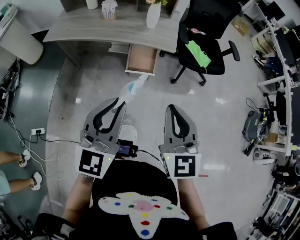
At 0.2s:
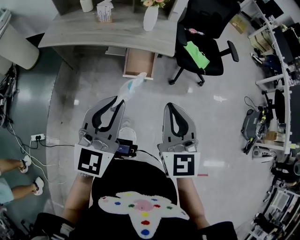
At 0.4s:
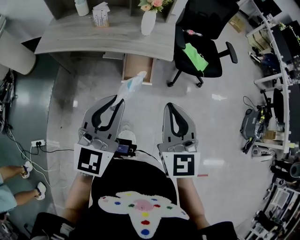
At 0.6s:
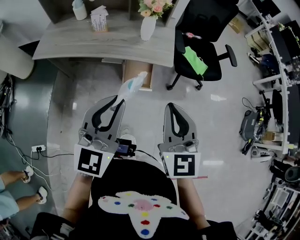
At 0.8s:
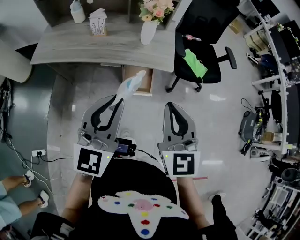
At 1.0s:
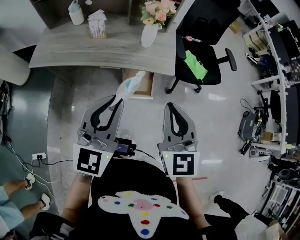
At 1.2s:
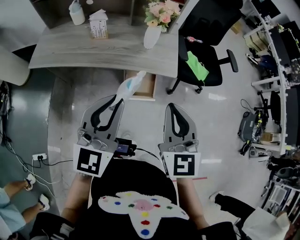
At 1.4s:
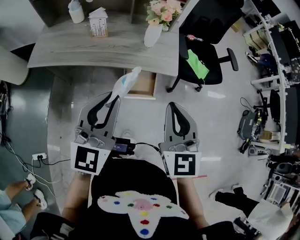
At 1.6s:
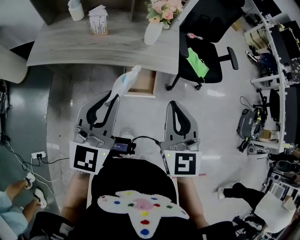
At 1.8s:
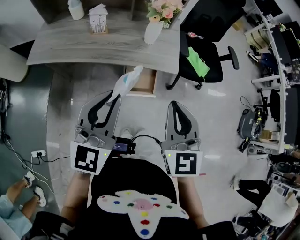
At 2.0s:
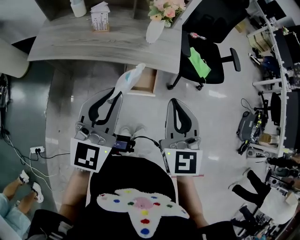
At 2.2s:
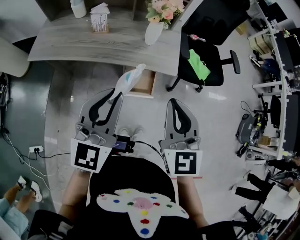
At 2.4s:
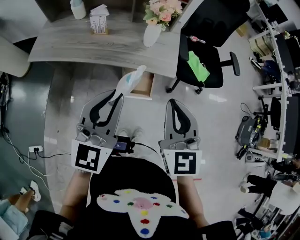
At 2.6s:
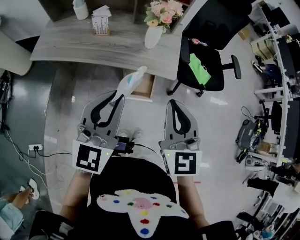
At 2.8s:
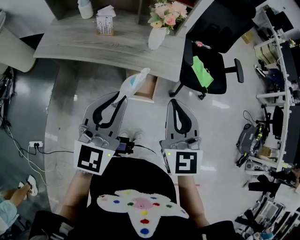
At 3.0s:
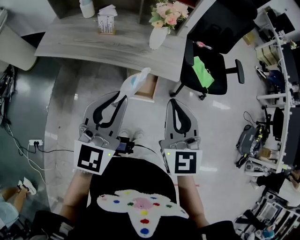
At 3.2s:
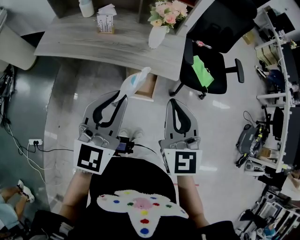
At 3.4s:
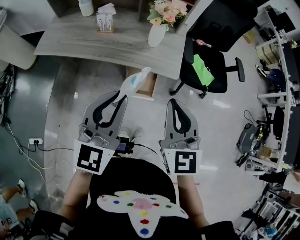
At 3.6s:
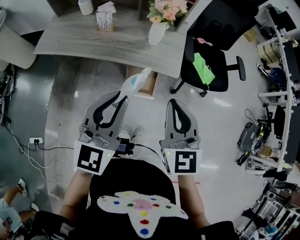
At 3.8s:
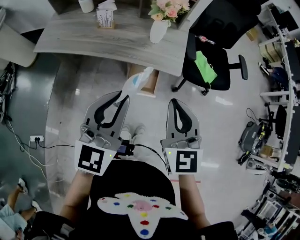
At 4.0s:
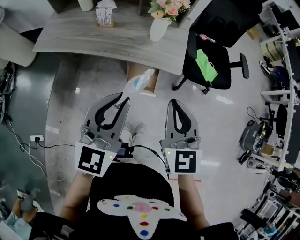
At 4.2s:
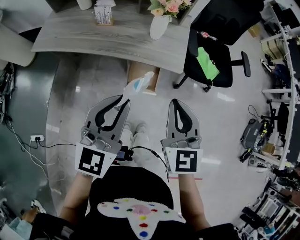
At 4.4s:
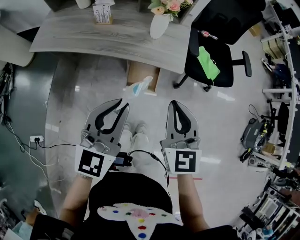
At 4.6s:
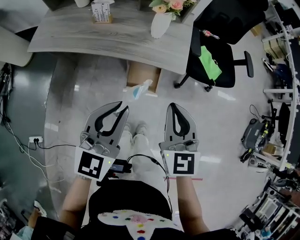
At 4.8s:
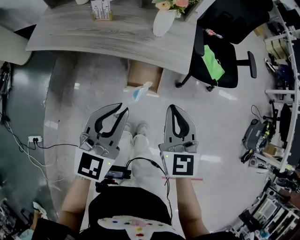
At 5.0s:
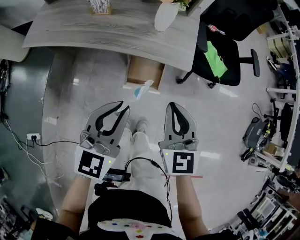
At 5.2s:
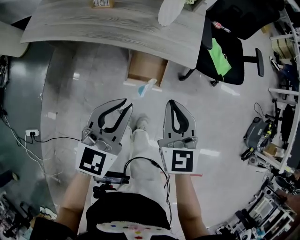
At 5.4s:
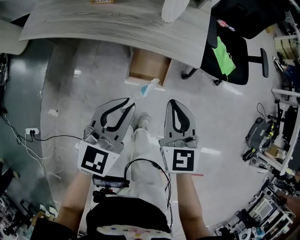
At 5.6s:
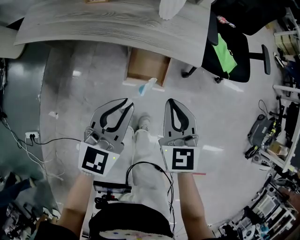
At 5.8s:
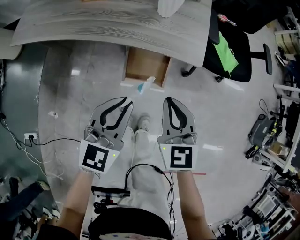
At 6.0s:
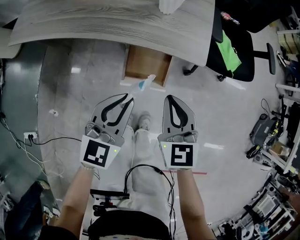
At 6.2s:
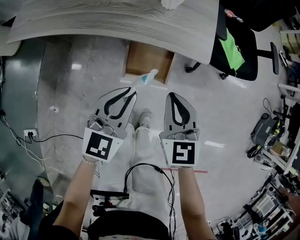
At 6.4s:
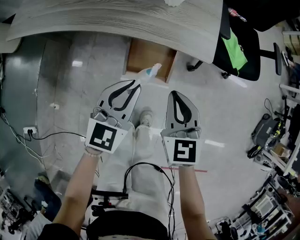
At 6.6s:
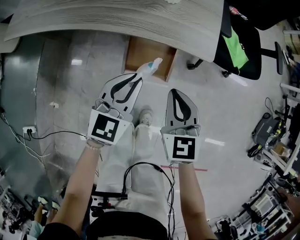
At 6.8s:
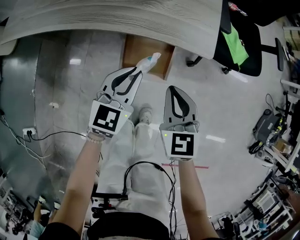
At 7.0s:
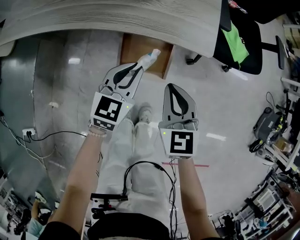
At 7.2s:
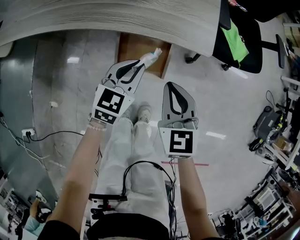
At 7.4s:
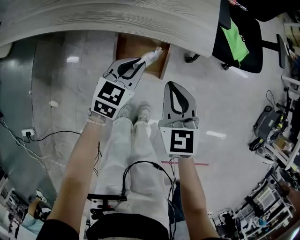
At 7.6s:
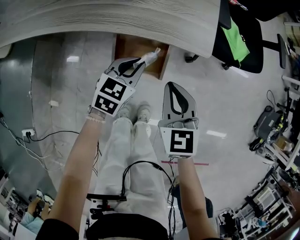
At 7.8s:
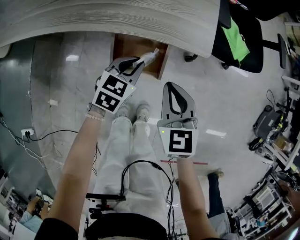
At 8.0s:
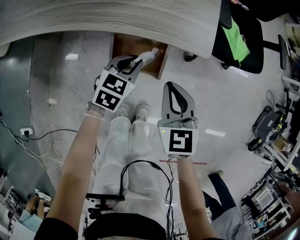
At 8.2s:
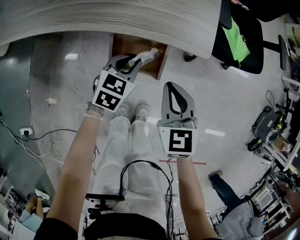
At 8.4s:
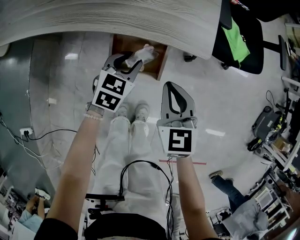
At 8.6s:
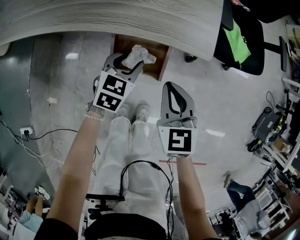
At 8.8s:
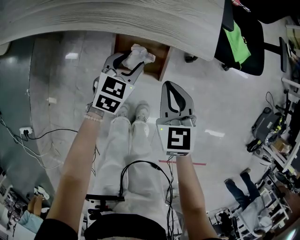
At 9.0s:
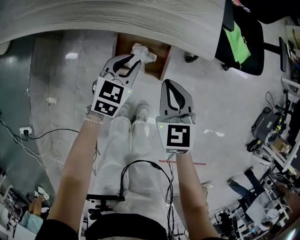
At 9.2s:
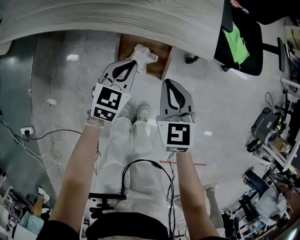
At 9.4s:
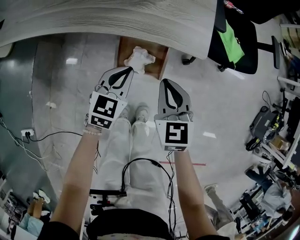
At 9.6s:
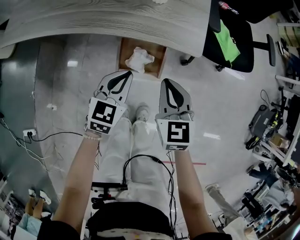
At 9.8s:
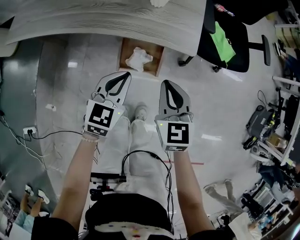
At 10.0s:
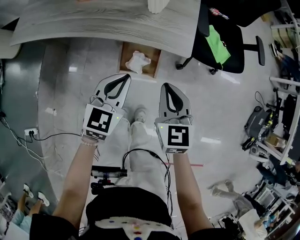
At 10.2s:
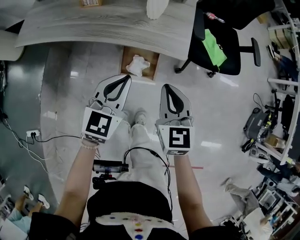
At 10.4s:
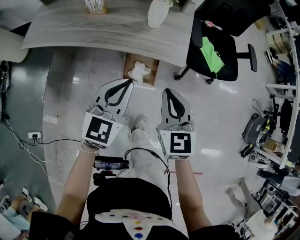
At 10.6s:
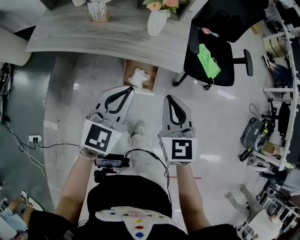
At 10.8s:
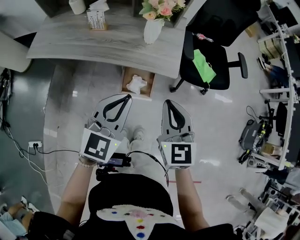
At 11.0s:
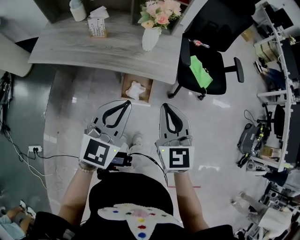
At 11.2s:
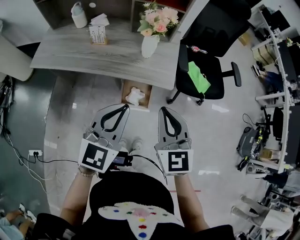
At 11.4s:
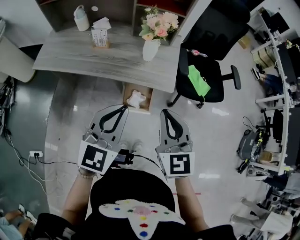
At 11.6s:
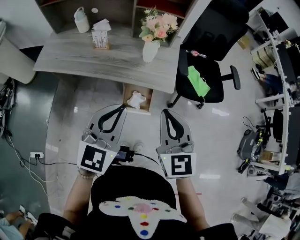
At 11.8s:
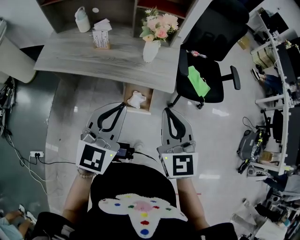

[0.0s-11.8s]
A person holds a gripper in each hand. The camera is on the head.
0.0s to 1.4s: Both grippers travel together forward and to the left, some 20 cm.
1.4s to 3.0s: The grippers move only a little.
3.0s to 4.4s: The grippers both shift downward by some 5 cm.
4.4s to 6.0s: Both grippers travel together downward, approximately 20 cm.
6.0s to 7.4s: The right gripper travels downward by approximately 10 cm; the left gripper moves downward and forward, about 20 cm.
7.4s to 8.8s: The left gripper opens.
8.8s to 10.4s: The two grippers go roughly 25 cm upward. The left gripper changes its angle by some 20 degrees, and closes up.
10.4s to 11.8s: Both grippers travel together upward, roughly 15 cm.

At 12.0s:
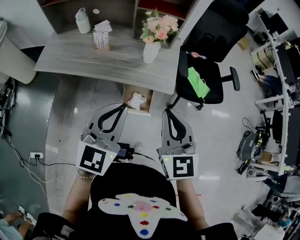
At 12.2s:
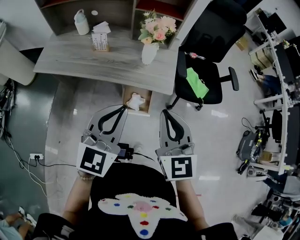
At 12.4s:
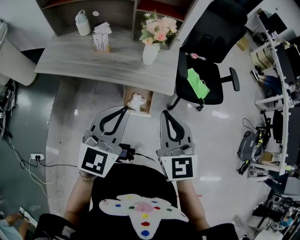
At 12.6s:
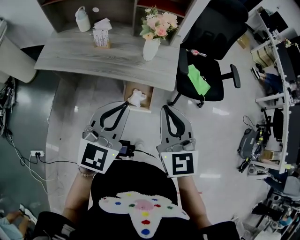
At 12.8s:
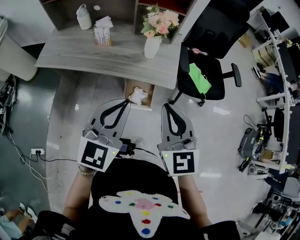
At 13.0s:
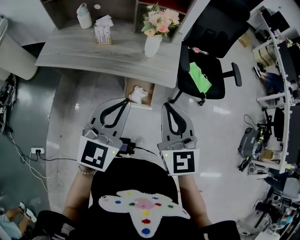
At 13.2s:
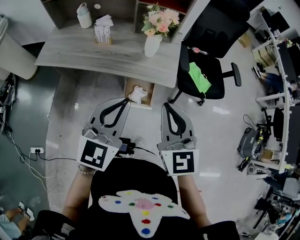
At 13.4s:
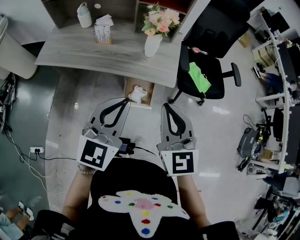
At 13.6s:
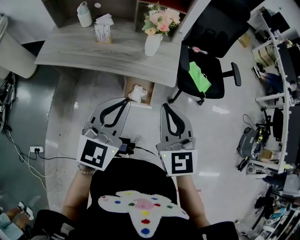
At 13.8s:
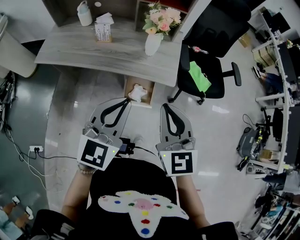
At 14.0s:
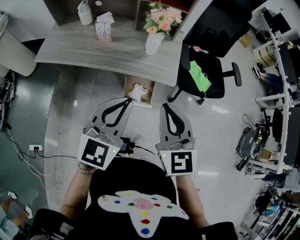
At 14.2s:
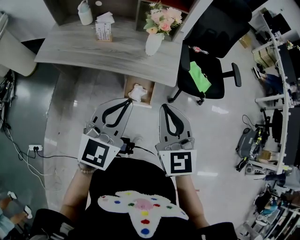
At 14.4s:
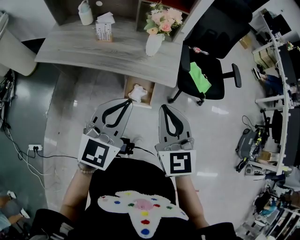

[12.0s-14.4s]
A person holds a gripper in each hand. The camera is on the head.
12.0s to 13.2s: Both grippers stay about where they are.
13.2s to 14.4s: The grippers make only small movements.

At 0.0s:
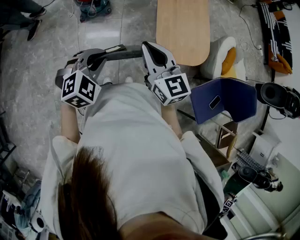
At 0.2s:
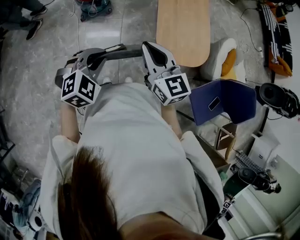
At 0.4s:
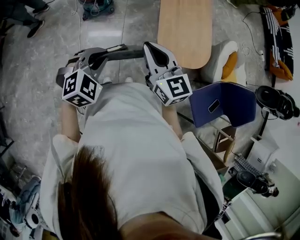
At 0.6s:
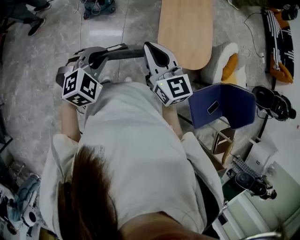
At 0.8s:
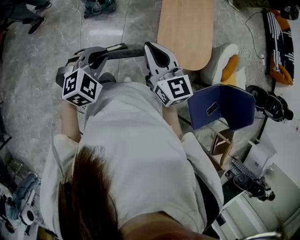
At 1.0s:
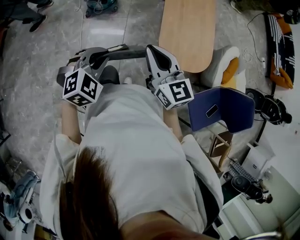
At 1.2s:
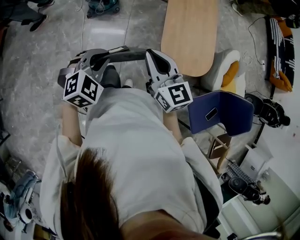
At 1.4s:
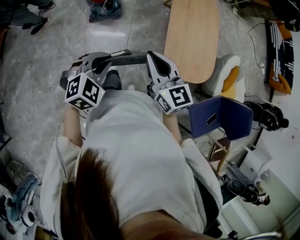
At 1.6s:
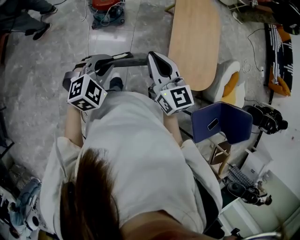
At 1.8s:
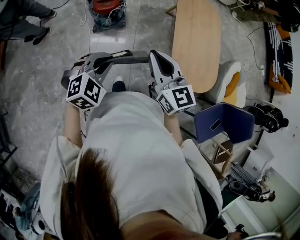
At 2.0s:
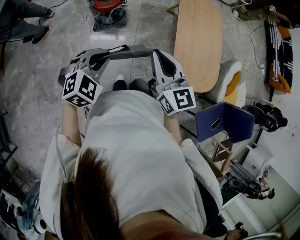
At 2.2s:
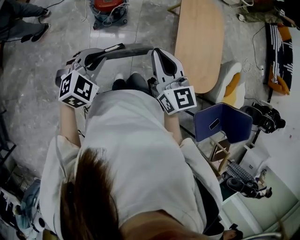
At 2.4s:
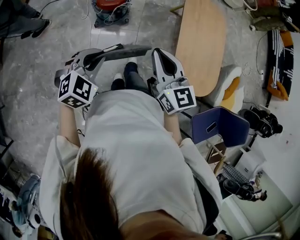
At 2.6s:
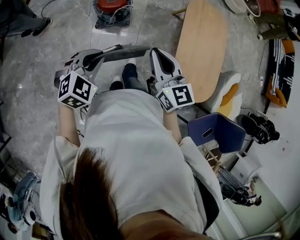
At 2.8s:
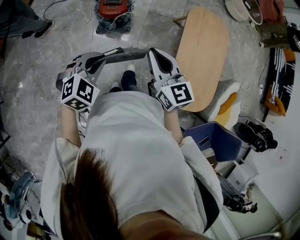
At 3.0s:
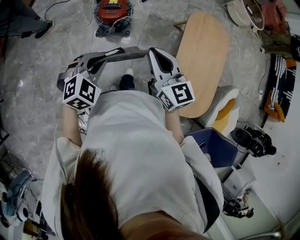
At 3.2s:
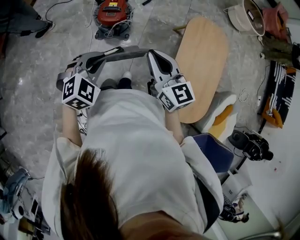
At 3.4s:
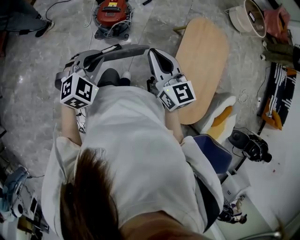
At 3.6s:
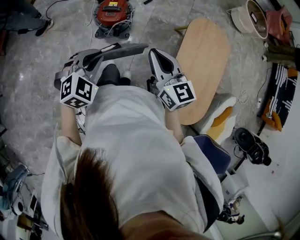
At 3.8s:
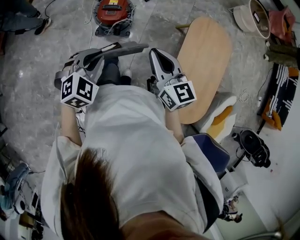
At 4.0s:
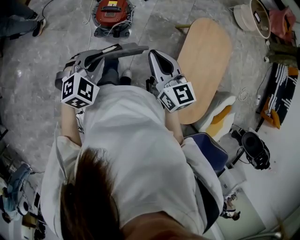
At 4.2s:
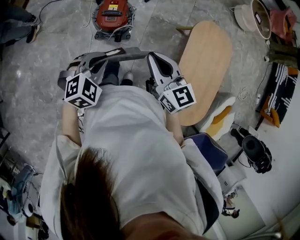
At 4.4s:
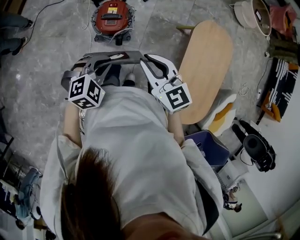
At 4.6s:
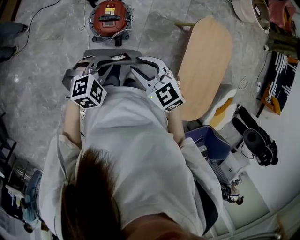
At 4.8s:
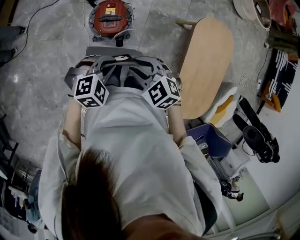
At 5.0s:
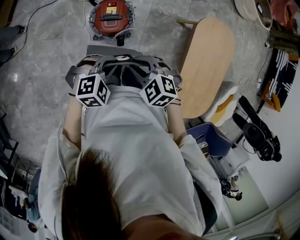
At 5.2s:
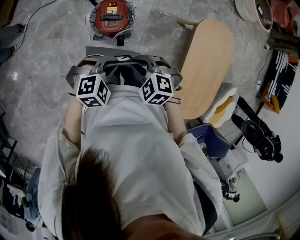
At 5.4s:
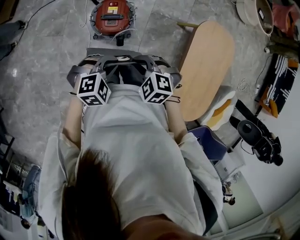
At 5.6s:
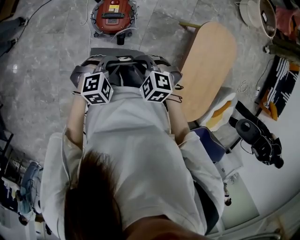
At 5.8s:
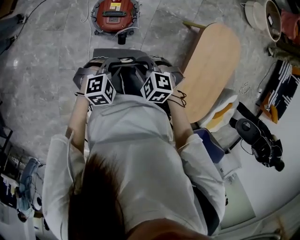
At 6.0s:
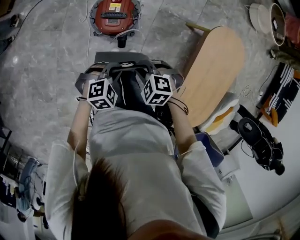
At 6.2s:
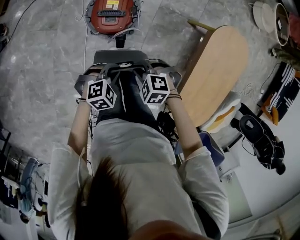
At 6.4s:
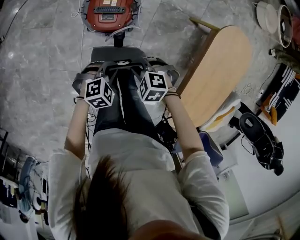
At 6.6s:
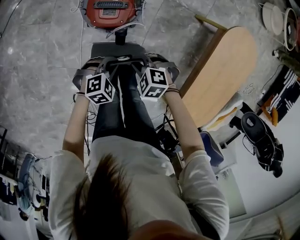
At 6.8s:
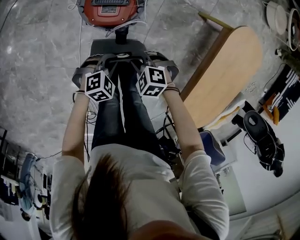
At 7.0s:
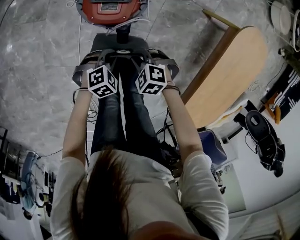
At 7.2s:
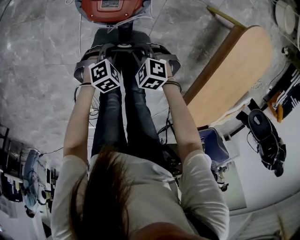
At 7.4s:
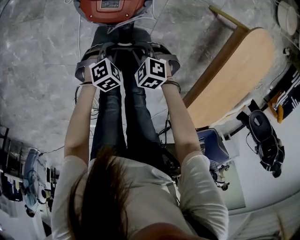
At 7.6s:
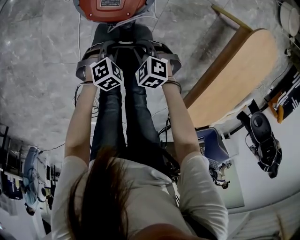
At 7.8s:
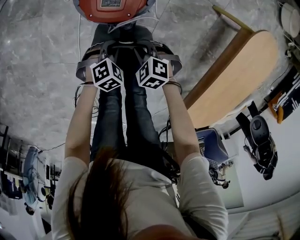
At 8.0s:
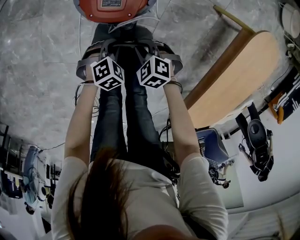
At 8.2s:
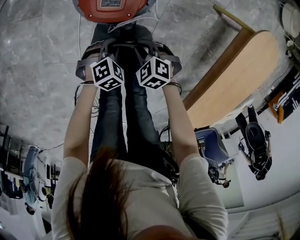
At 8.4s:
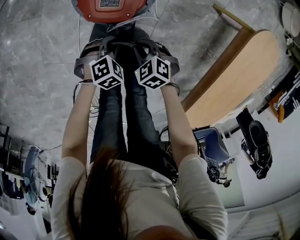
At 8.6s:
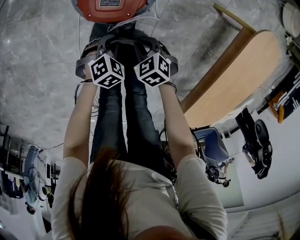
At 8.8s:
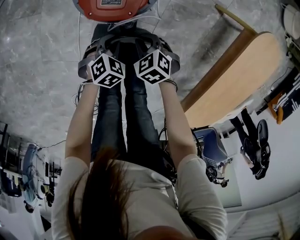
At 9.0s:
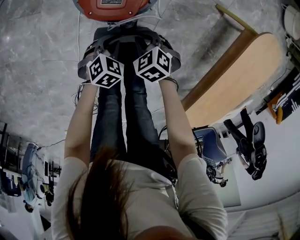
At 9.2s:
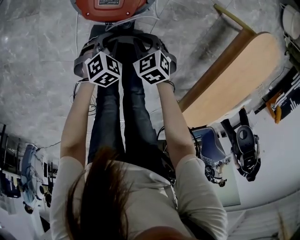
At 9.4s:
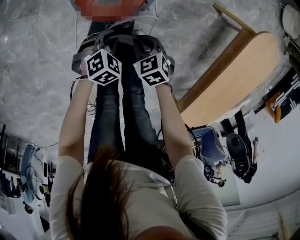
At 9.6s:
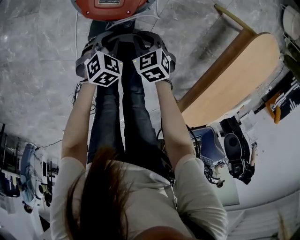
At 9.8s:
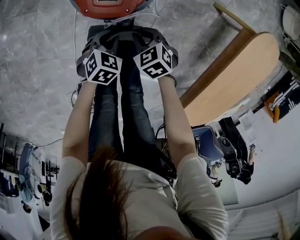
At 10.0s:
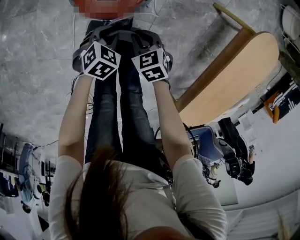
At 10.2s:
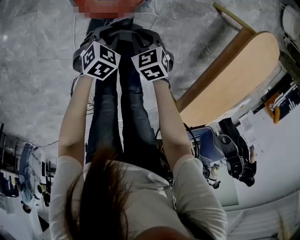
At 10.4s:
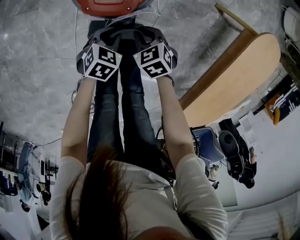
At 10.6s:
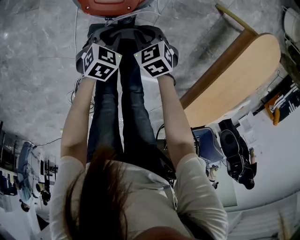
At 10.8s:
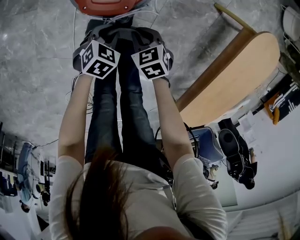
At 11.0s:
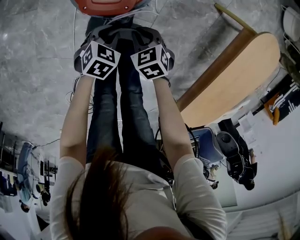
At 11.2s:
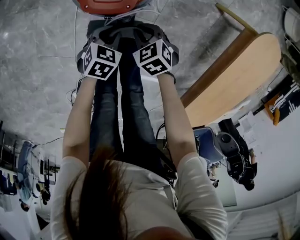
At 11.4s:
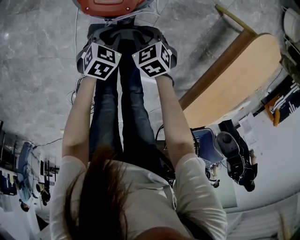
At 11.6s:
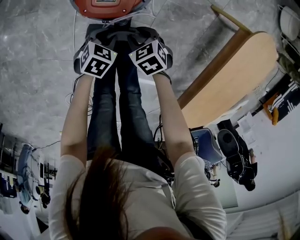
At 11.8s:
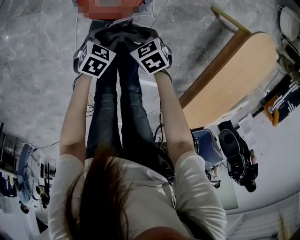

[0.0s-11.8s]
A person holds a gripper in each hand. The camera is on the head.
0.0s to 1.4s: Both grippers travel together forward, some 5 cm.
1.4s to 3.0s: The right gripper travels forward by about 25 cm, while the left gripper travels forward and to the left by some 25 cm.
3.0s to 4.4s: The two grippers go roughly 20 cm forward.
4.4s to 6.0s: Both grippers travel together downward, some 20 cm. The right gripper tips its fingers downward by some 40 degrees.
6.0s to 7.4s: Both grippers travel together downward, some 30 cm.
8.8s to 10.4s: The grippers move only a little.
10.4s to 11.8s: The left gripper opens up. Meanwhile the right gripper opens up.
